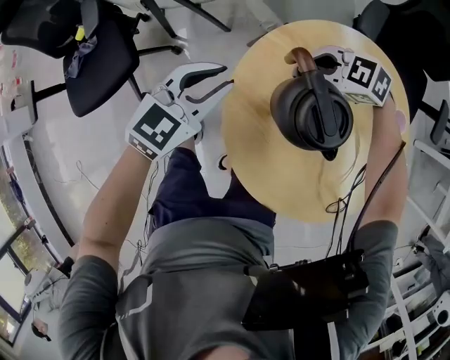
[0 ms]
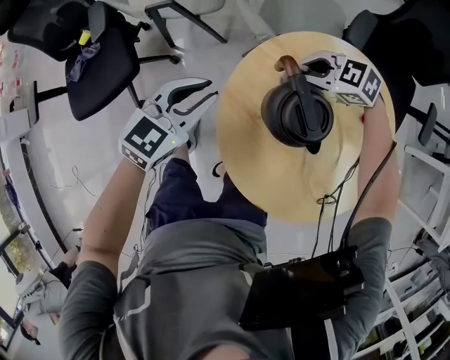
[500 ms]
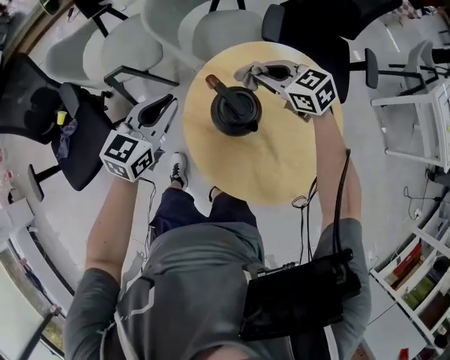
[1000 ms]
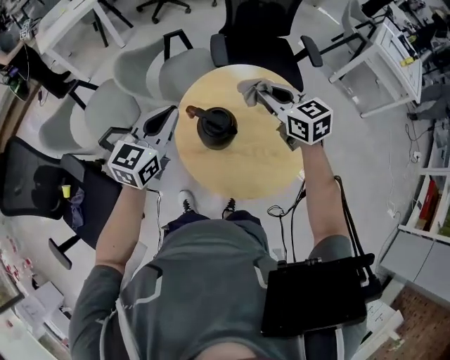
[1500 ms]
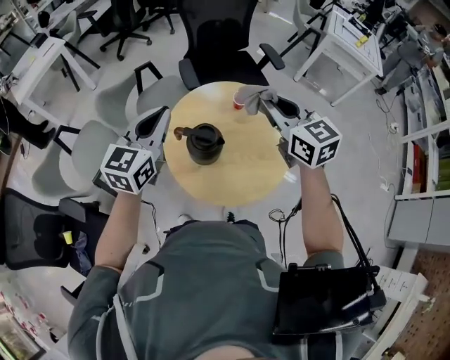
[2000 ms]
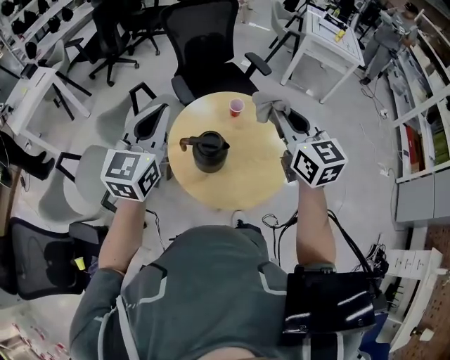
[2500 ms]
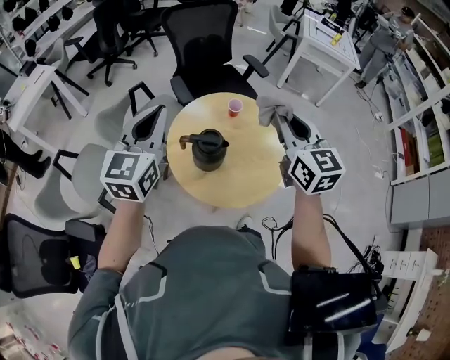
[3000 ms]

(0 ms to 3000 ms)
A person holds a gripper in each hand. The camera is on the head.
0 ms - 1500 ms: The grippers both shift upward by approximately 25 cm. The left gripper rotates roughly 30 degrees, and closes. Meanwhile the right gripper rotates approximately 90 degrees.
1500 ms - 3000 ms: The right gripper changes place by roughly 20 cm, and swivels about 40 degrees. Meanwhile the left gripper shifts approximately 15 cm upward.

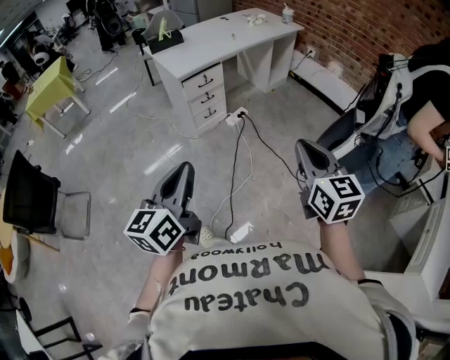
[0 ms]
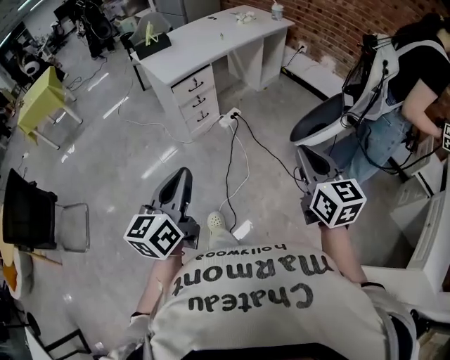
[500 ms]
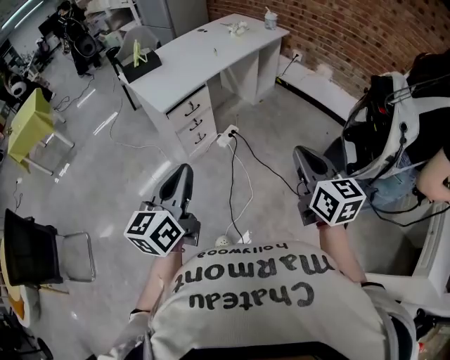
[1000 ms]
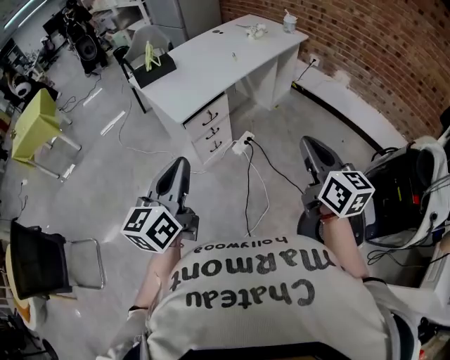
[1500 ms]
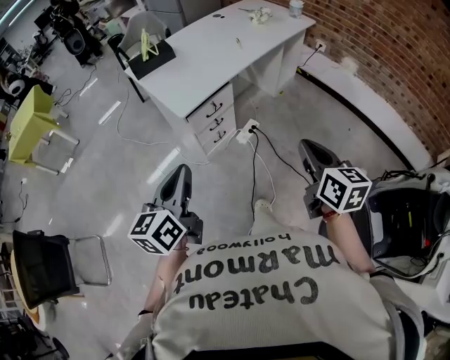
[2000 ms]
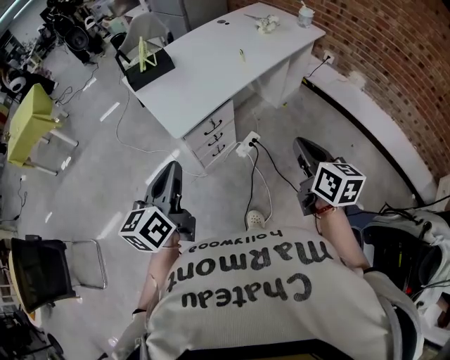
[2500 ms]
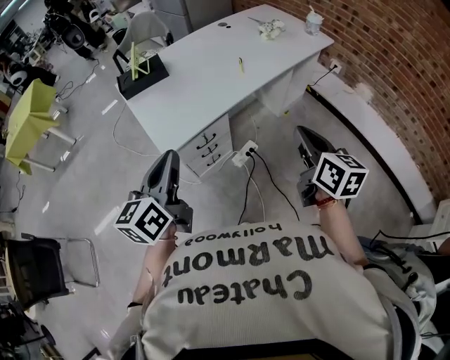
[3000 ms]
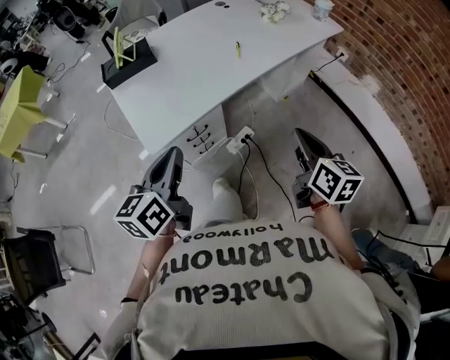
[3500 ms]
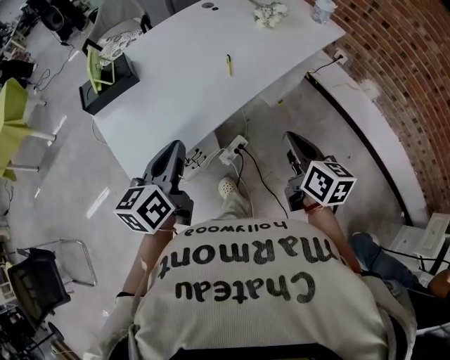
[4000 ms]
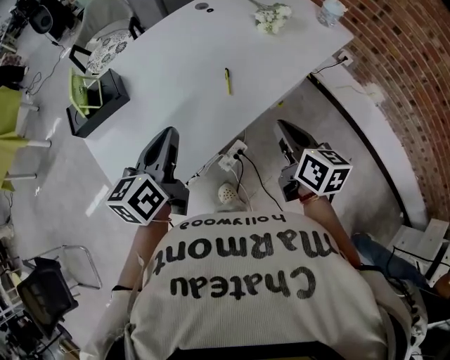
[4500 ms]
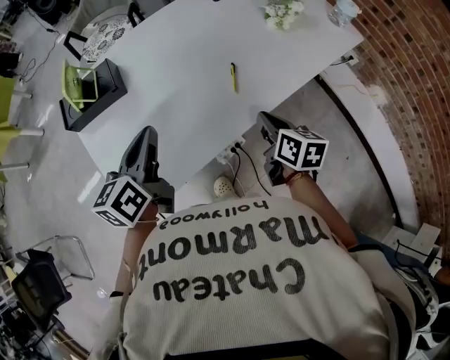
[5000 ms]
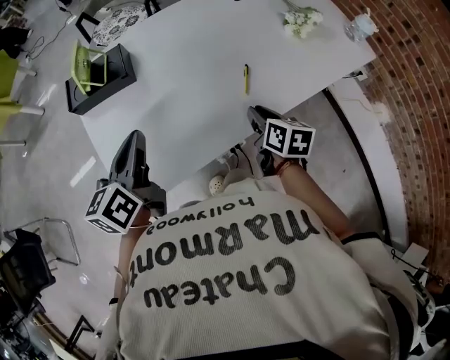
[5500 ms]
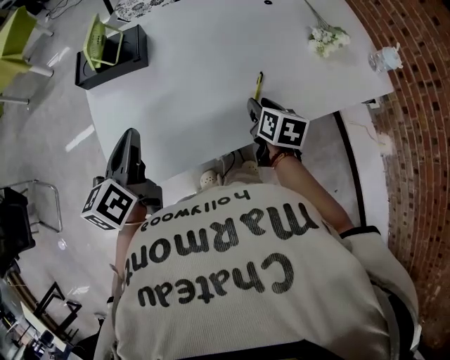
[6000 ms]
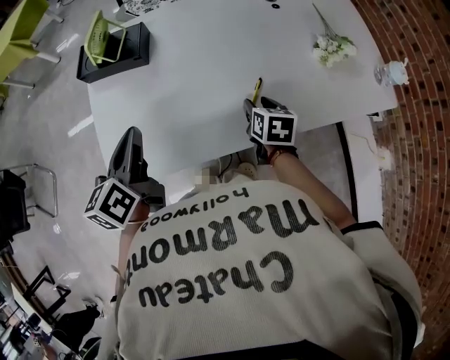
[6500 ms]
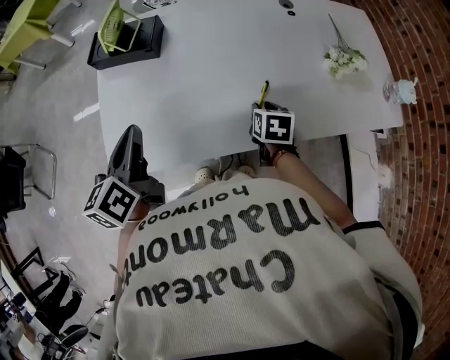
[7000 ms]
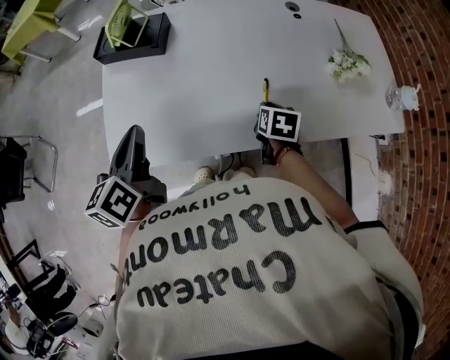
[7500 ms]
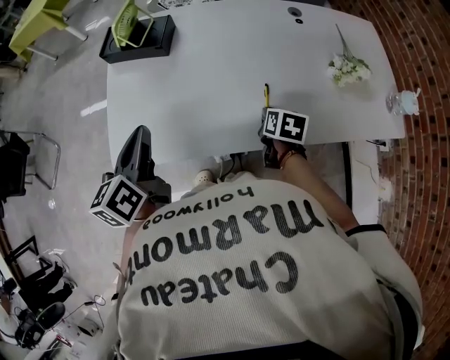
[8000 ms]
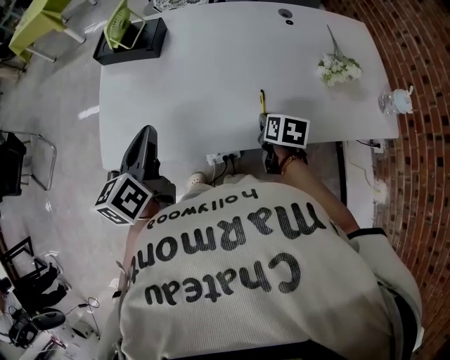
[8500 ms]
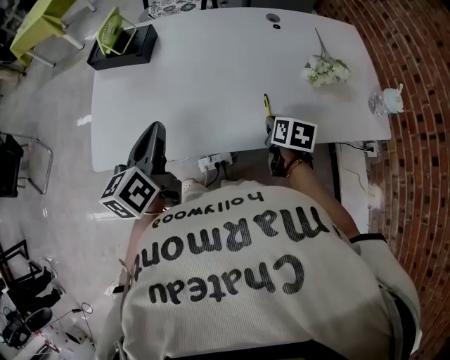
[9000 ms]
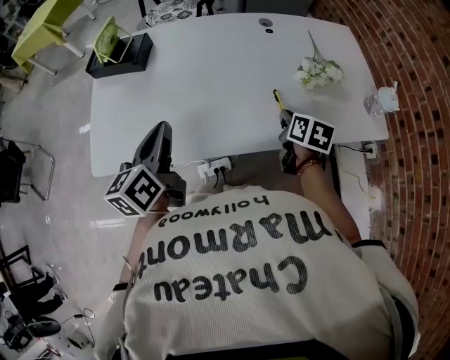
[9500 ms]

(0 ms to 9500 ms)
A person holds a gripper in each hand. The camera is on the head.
0 ms - 2000 ms: The grippers both shift forward by roughly 35 cm.
2000 ms - 4000 ms: Both grippers are carried forward, about 40 cm.
4000 ms - 5500 ms: The left gripper shifts approximately 15 cm forward and to the left. The right gripper shifts roughly 25 cm forward and downward.
5500 ms - 7500 ms: The right gripper shifts about 10 cm forward, changes its angle by roughly 30 degrees, and opens and closes again. The left gripper rotates about 30 degrees.
7500 ms - 9500 ms: The grippers both shift to the right by roughly 15 cm.

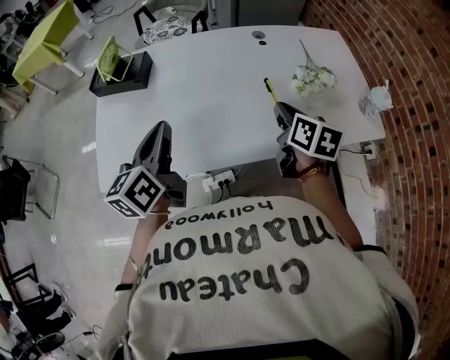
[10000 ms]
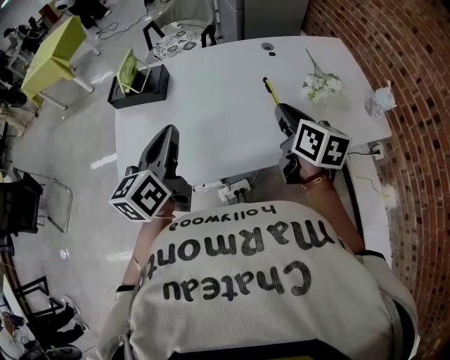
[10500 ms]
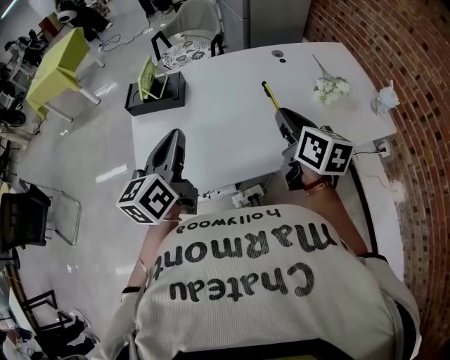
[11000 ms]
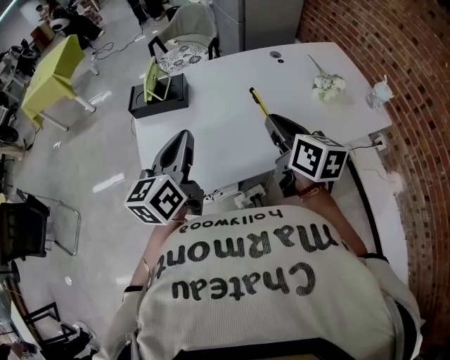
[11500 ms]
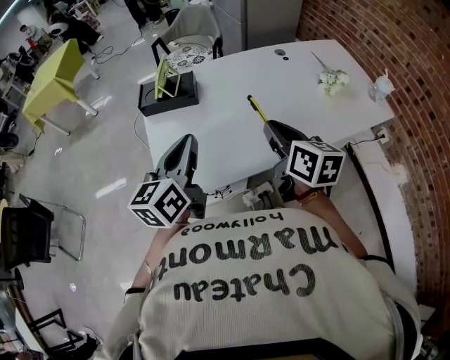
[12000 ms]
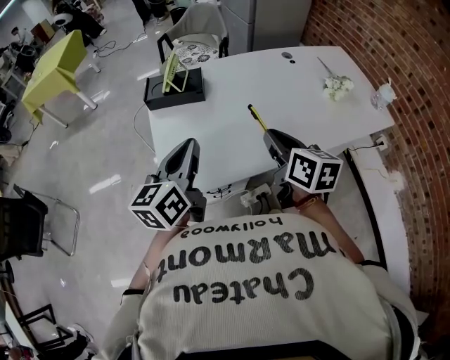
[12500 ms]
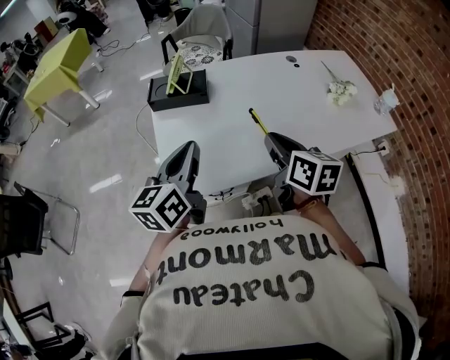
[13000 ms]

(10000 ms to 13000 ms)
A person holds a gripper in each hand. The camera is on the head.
10000 ms - 11500 ms: The left gripper shifts approximately 15 cm to the left and upward, while the right gripper heads to the left and upward, covering some 25 cm.
11500 ms - 13000 ms: Both grippers move to the left, about 10 cm.

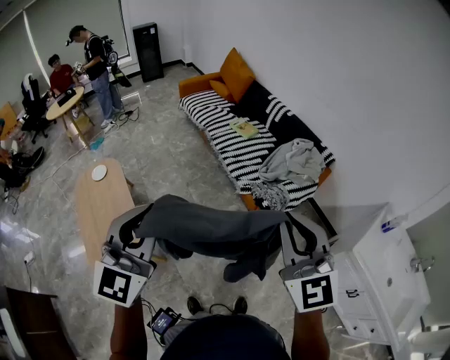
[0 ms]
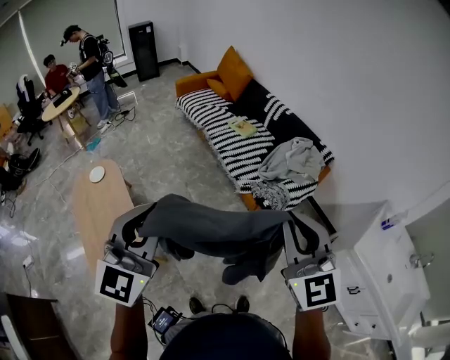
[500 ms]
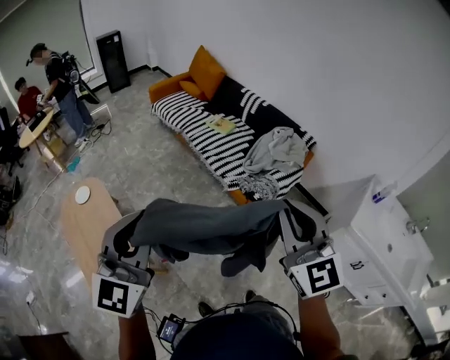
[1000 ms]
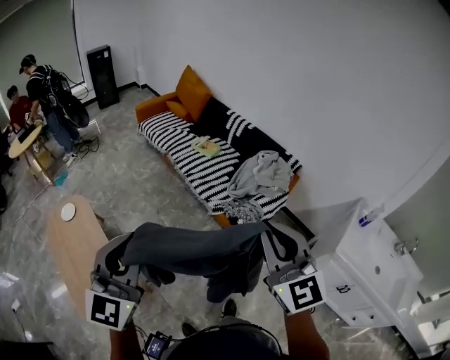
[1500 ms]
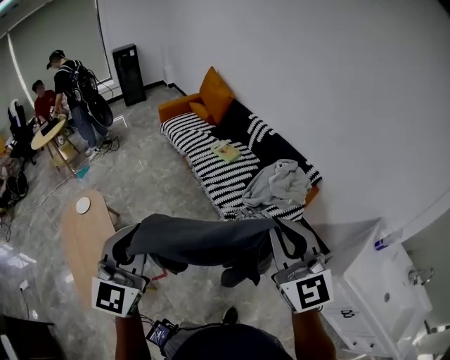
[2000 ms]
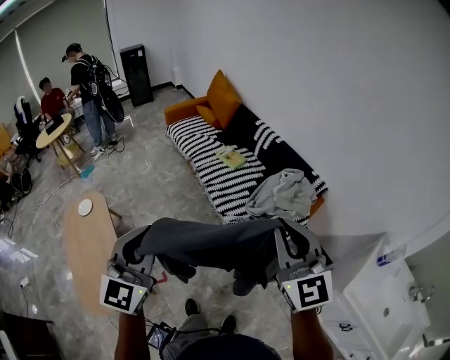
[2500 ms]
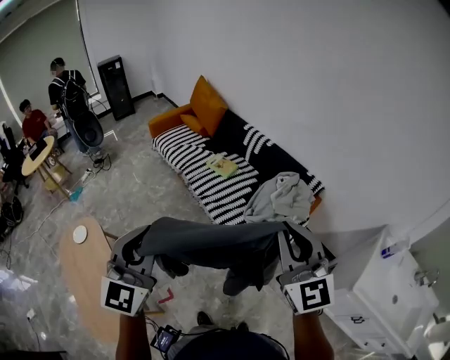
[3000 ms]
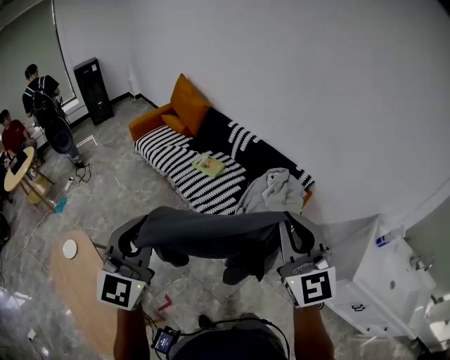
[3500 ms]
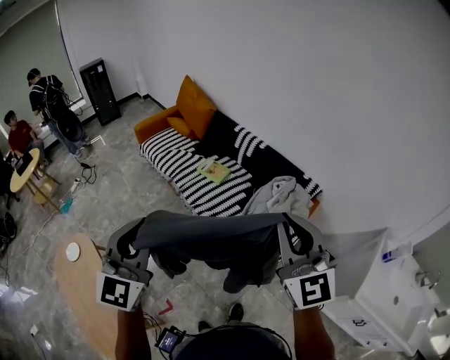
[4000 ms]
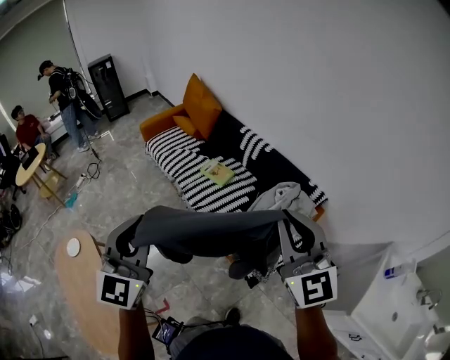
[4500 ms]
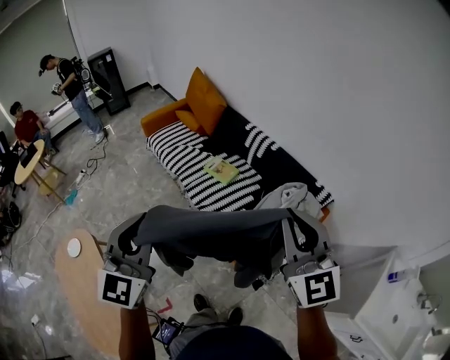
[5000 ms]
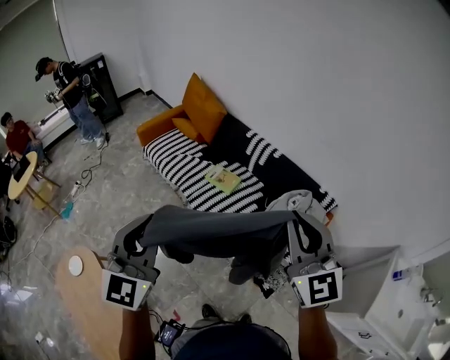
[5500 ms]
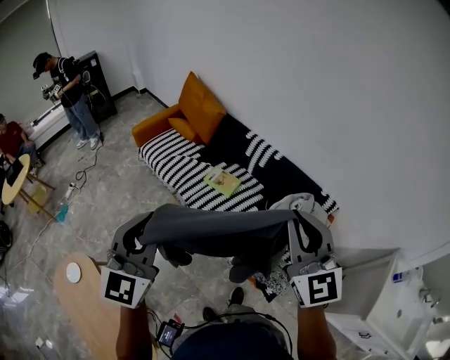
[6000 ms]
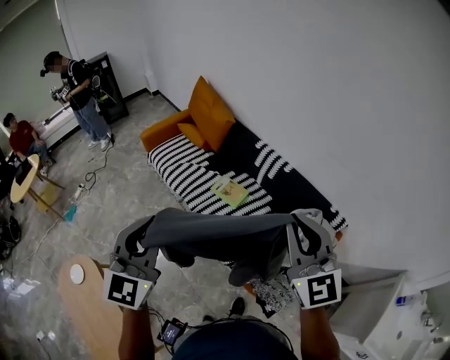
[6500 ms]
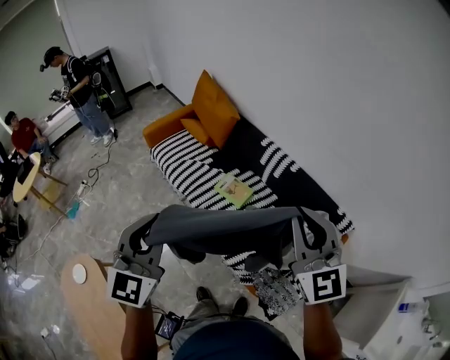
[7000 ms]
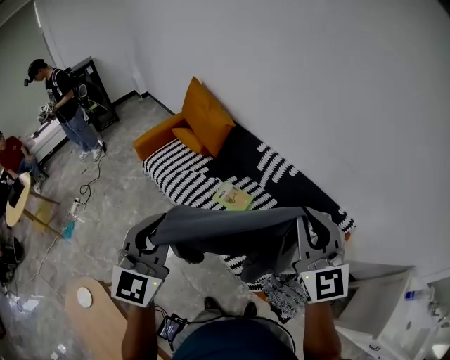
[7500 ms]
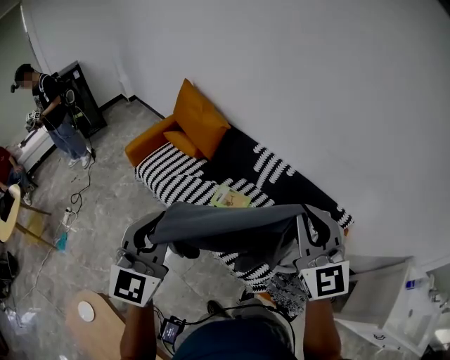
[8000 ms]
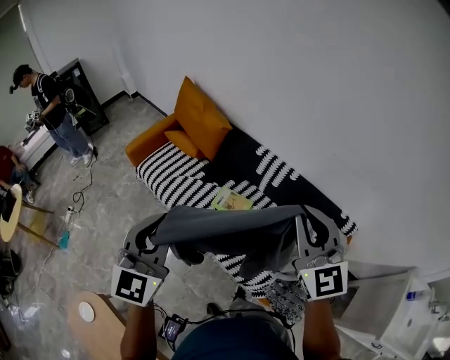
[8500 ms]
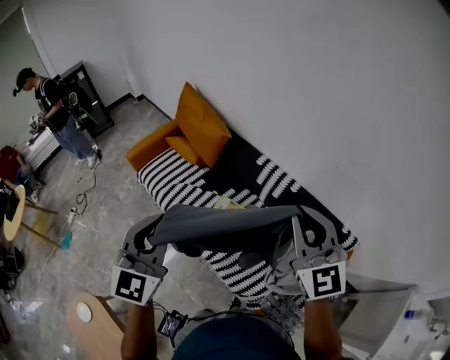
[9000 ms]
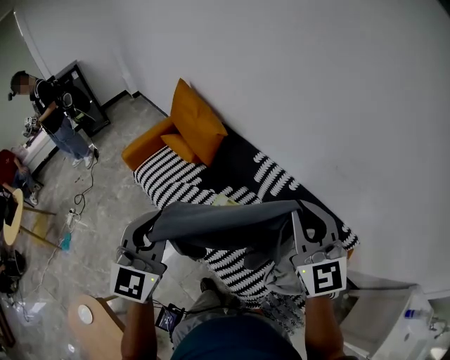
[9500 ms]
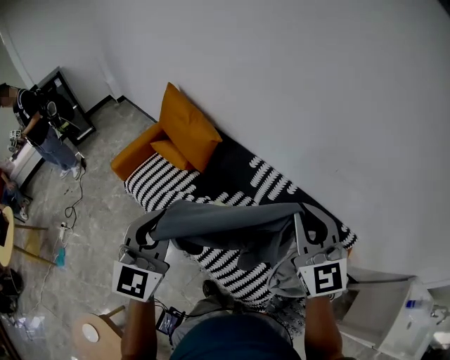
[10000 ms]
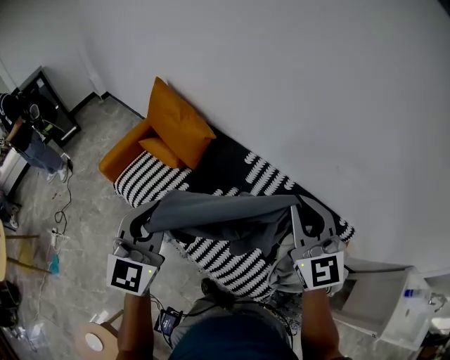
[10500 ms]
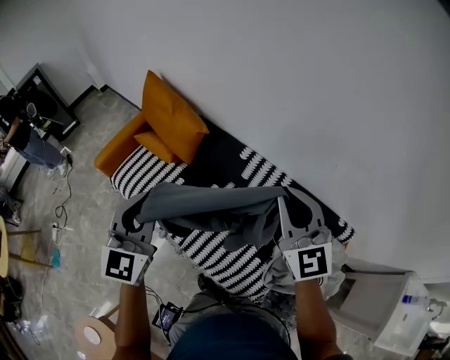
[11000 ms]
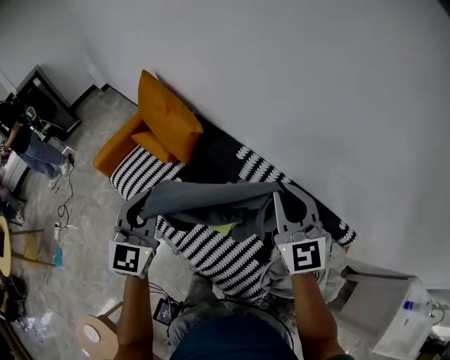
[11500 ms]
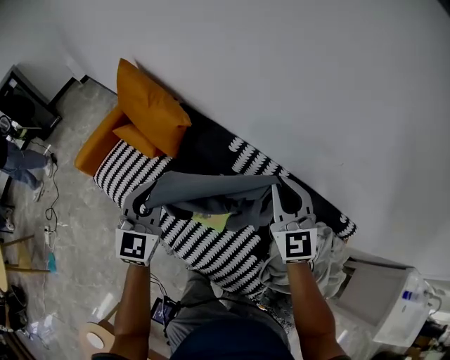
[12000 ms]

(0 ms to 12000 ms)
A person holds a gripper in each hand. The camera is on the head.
0 ms - 2000 ms: The right gripper shifts roughly 15 cm forward and to the right; the left gripper is displaced forward by approximately 10 cm.
2000 ms - 4000 ms: The grippers both shift forward by approximately 25 cm.
4000 ms - 6000 ms: The grippers both shift forward by about 20 cm.
6000 ms - 8000 ms: The grippers both shift forward by about 20 cm.
8000 ms - 10000 ms: Both grippers travel together forward, approximately 20 cm.
10000 ms - 12000 ms: The two grippers go about 30 cm forward and downward.
